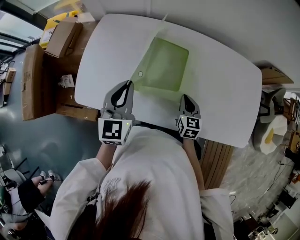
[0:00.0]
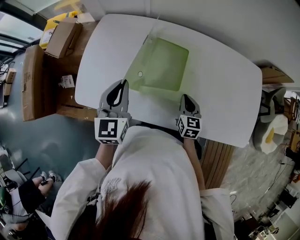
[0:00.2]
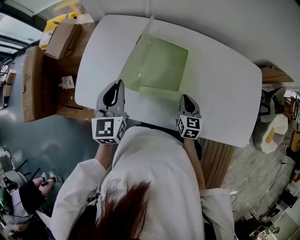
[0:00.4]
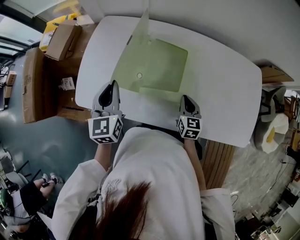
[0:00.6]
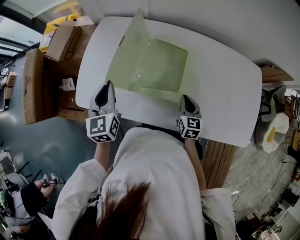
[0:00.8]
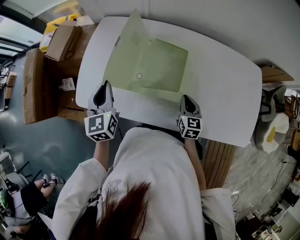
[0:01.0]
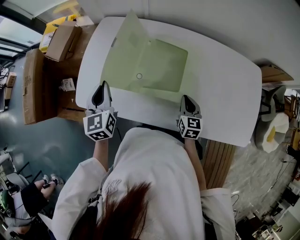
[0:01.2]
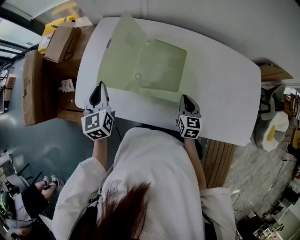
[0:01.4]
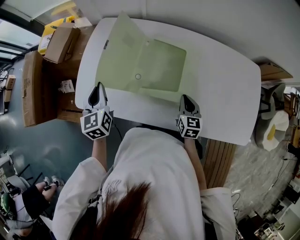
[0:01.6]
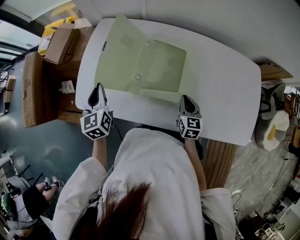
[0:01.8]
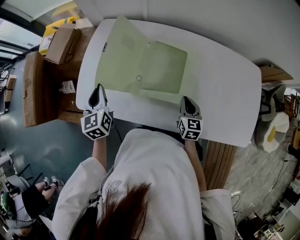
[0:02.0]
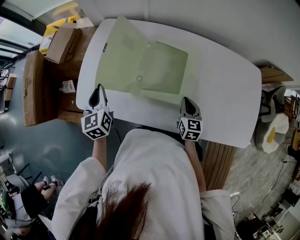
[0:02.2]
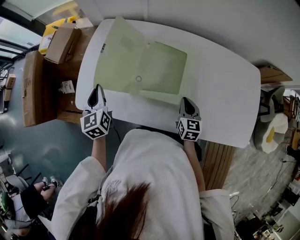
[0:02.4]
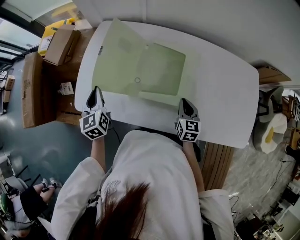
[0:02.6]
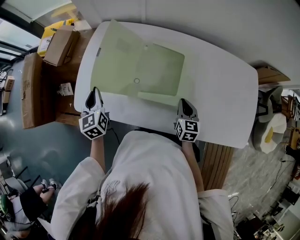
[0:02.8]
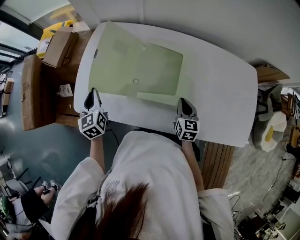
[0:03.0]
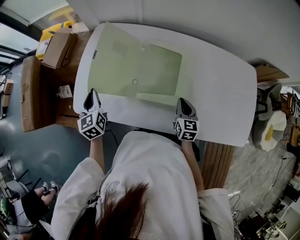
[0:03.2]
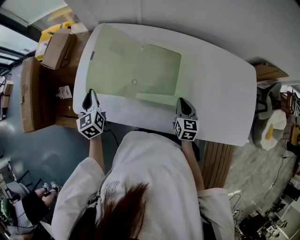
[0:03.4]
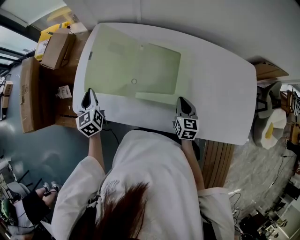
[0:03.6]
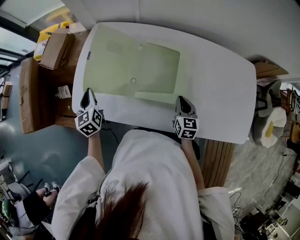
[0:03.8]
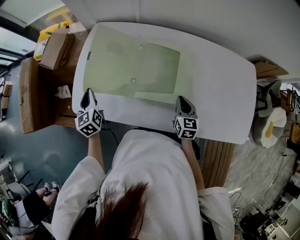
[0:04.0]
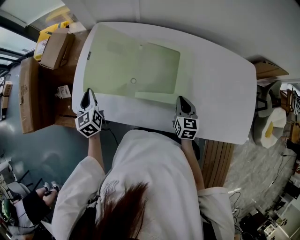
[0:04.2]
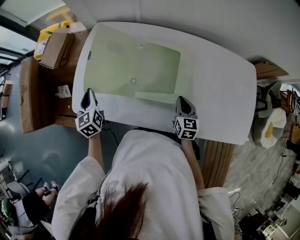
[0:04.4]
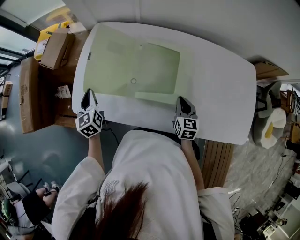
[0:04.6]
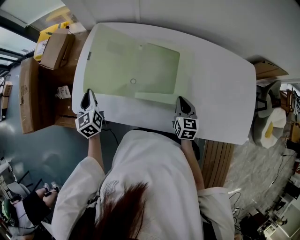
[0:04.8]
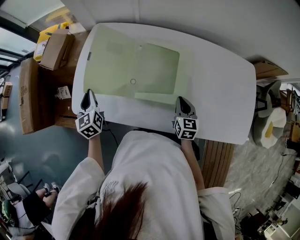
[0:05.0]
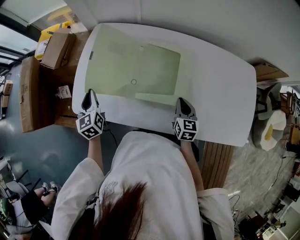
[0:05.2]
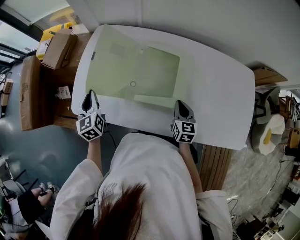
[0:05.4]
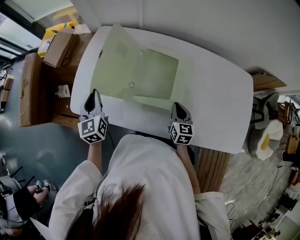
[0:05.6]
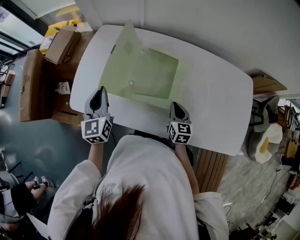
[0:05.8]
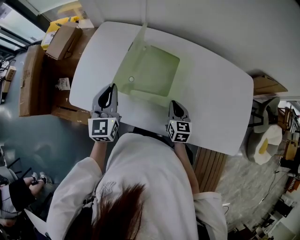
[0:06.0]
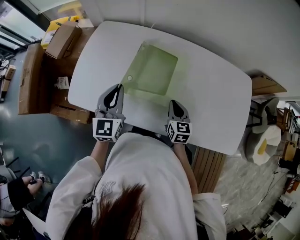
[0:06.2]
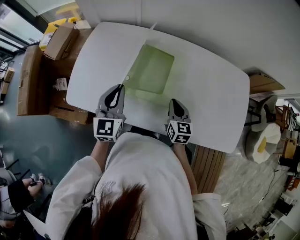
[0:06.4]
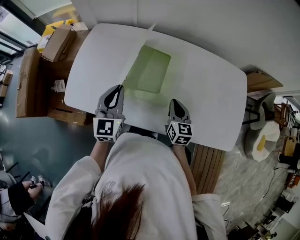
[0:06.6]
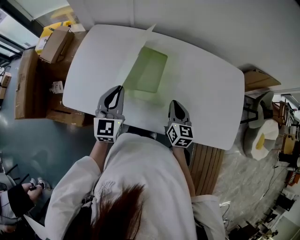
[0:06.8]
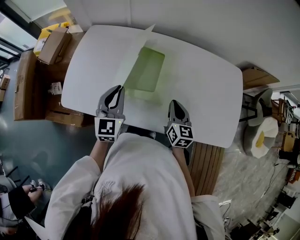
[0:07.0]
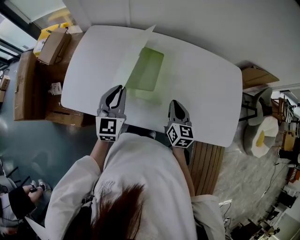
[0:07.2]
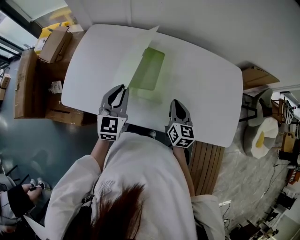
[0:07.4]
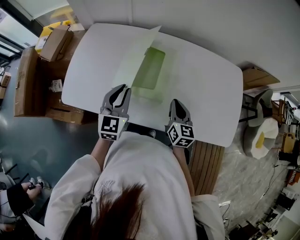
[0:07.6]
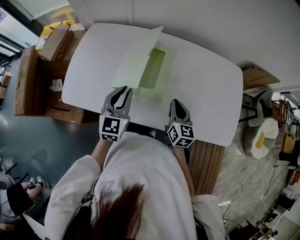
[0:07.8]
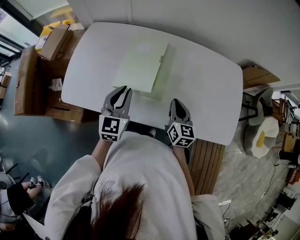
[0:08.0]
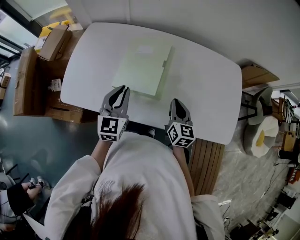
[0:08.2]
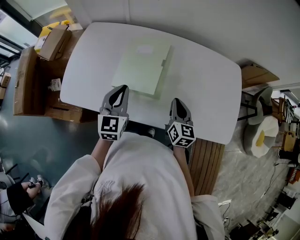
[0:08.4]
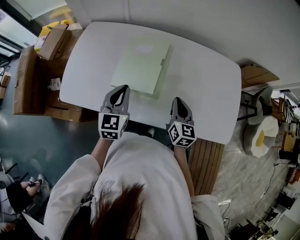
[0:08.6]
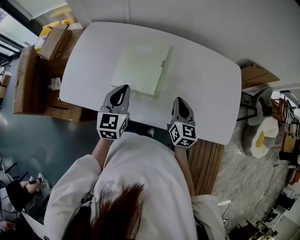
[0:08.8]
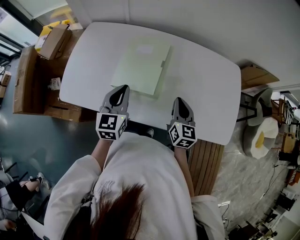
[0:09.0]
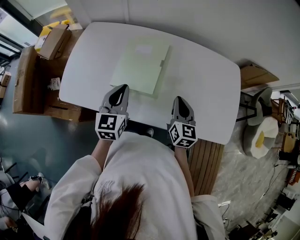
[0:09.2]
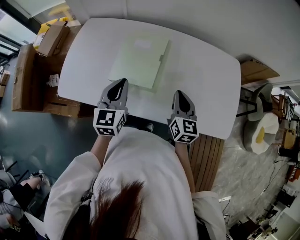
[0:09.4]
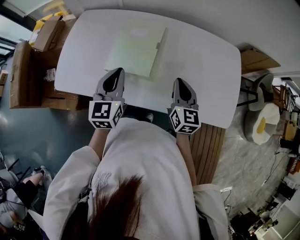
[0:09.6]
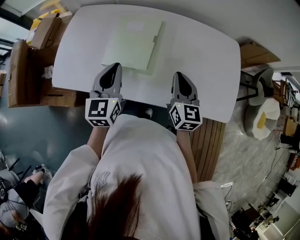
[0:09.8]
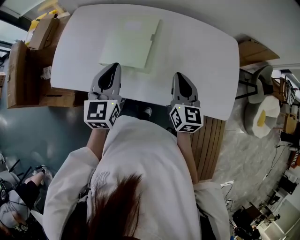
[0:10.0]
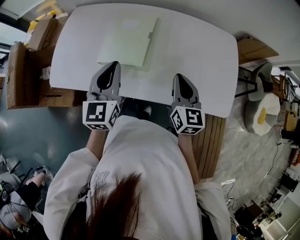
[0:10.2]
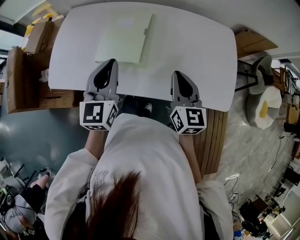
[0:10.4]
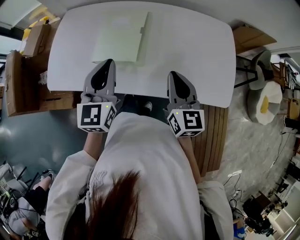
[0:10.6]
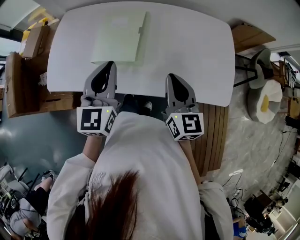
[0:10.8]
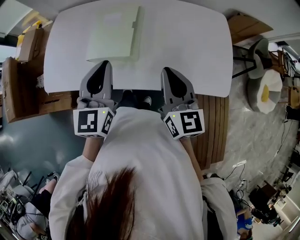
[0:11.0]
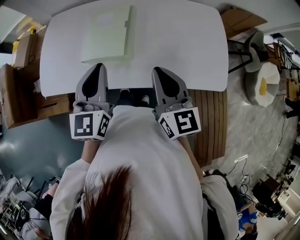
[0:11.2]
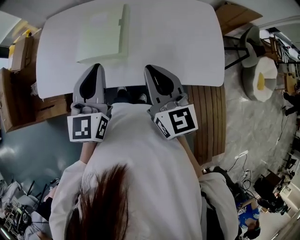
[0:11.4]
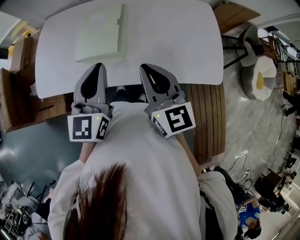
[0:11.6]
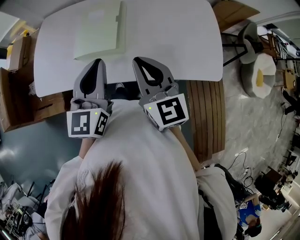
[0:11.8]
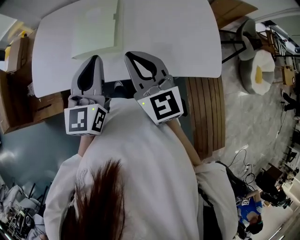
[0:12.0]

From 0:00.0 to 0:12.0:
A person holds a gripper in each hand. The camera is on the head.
From 0:00.0 to 0:01.6: The left gripper is displaced to the left by roughly 15 cm, and rotates approximately 20 degrees.
From 0:01.6 to 0:03.0: The left gripper shifts by about 5 cm.
From 0:03.0 to 0:04.4: The grippers move only a little.
From 0:04.4 to 0:06.0: The left gripper heads to the right and upward, covering approximately 20 cm, and swivels some 30 degrees.
From 0:06.0 to 0:07.6: The left gripper heads to the right, covering about 10 cm. Meanwhile the right gripper goes approximately 10 cm upward and to the right.
From 0:07.6 to 0:09.0: The grippers make only small movements.
From 0:09.0 to 0:10.4: The right gripper heads upward and backward, covering approximately 10 cm. The left gripper travels upward by roughly 5 cm.
From 0:10.4 to 0:12.0: The left gripper shifts approximately 5 cm backward. Meanwhile the right gripper travels to the left and upward by some 10 cm.

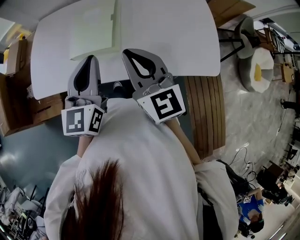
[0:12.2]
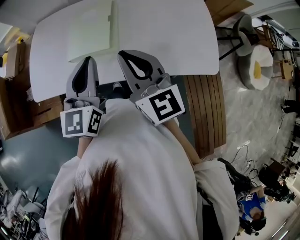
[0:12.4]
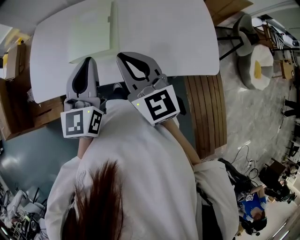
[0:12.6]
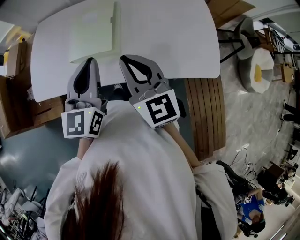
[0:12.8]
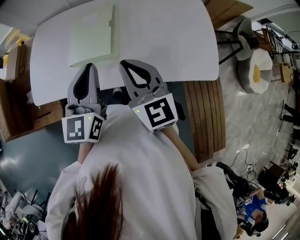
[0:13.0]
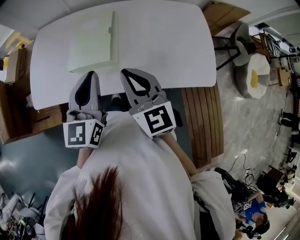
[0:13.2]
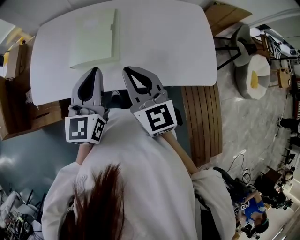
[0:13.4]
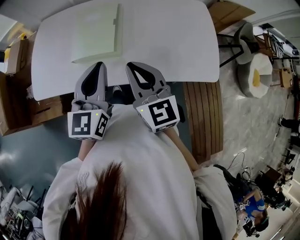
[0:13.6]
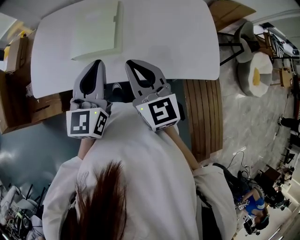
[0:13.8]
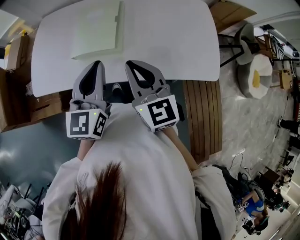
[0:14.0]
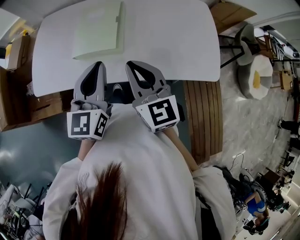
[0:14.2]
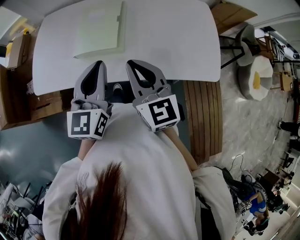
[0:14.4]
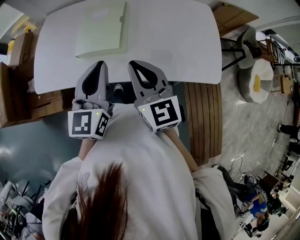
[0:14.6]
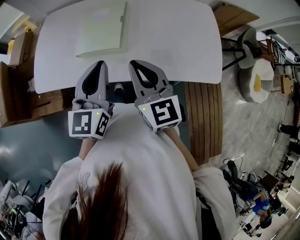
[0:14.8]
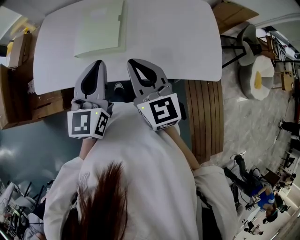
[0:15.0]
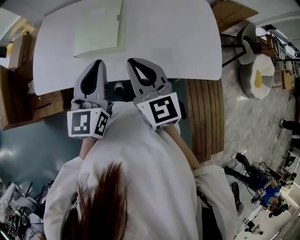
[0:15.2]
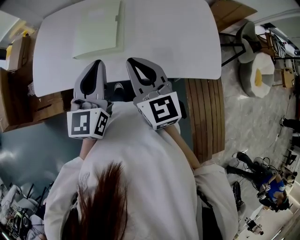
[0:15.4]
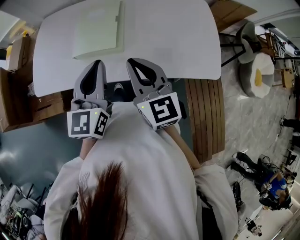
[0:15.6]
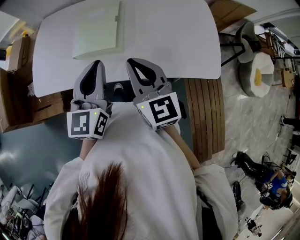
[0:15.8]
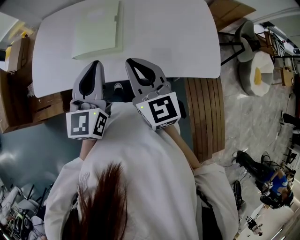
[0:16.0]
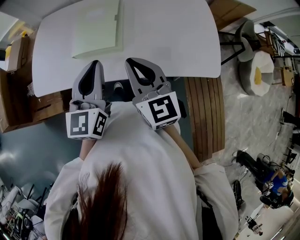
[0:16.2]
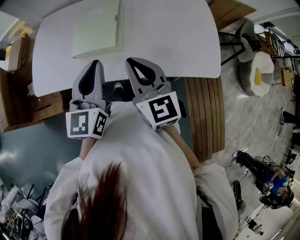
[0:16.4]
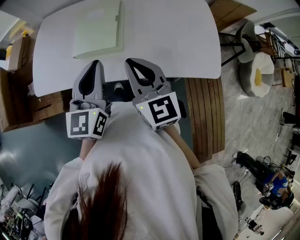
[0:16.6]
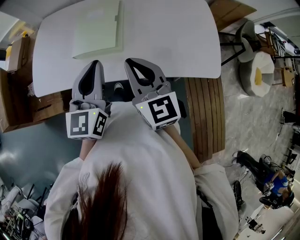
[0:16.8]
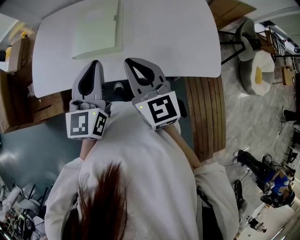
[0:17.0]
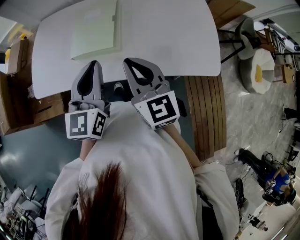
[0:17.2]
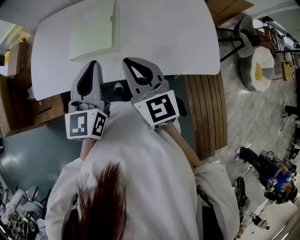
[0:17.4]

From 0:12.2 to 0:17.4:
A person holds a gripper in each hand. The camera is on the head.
From 0:12.2 to 0:14.0: The grippers stay close to where they were, moving slightly.
From 0:14.0 to 0:17.4: Neither gripper changes place.

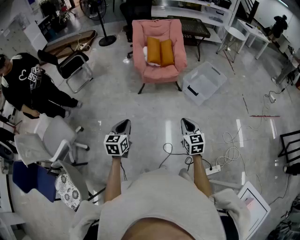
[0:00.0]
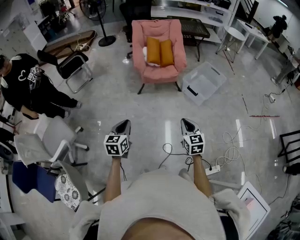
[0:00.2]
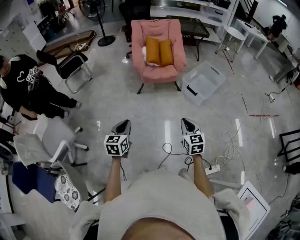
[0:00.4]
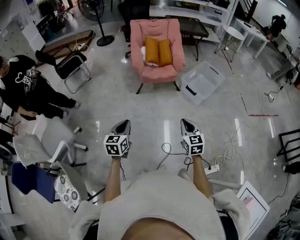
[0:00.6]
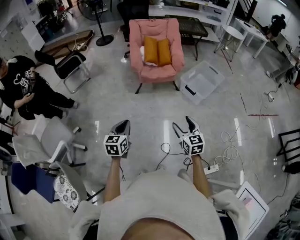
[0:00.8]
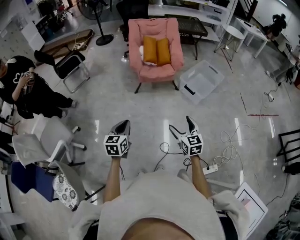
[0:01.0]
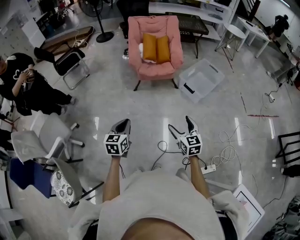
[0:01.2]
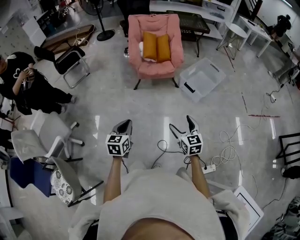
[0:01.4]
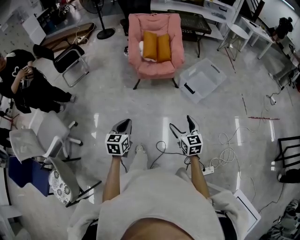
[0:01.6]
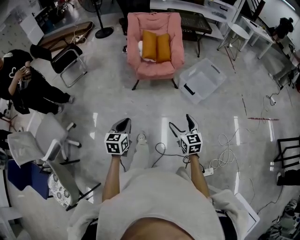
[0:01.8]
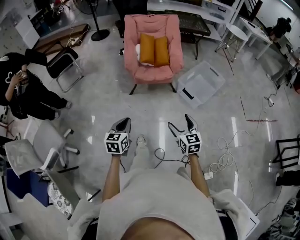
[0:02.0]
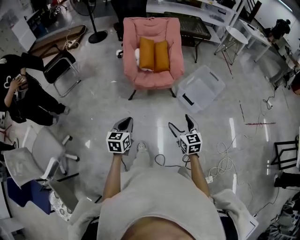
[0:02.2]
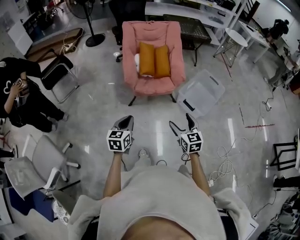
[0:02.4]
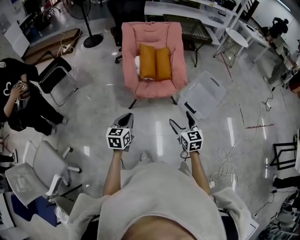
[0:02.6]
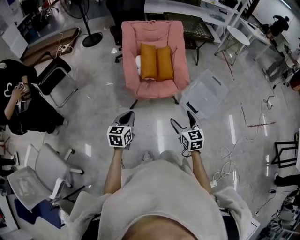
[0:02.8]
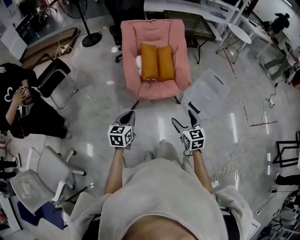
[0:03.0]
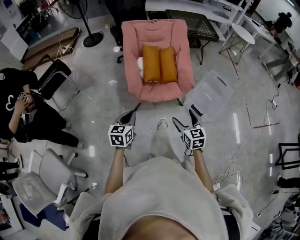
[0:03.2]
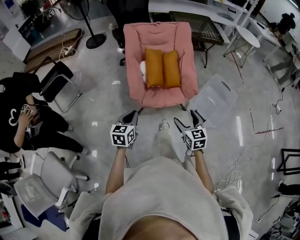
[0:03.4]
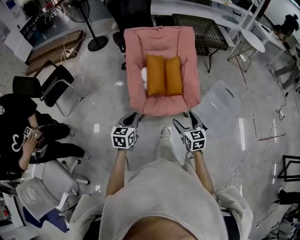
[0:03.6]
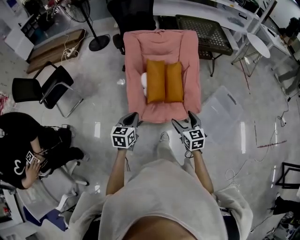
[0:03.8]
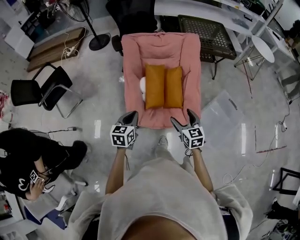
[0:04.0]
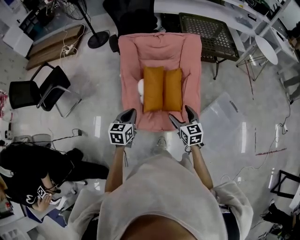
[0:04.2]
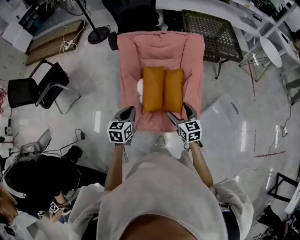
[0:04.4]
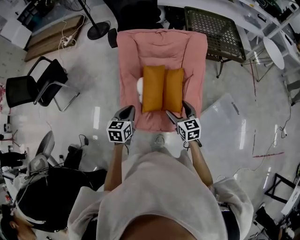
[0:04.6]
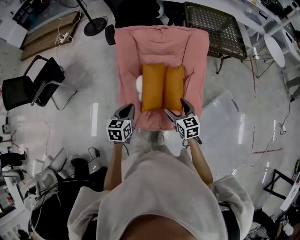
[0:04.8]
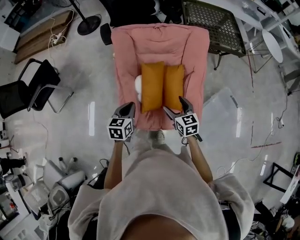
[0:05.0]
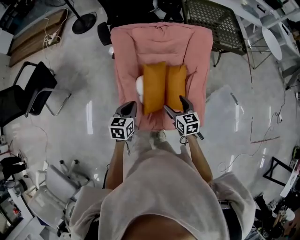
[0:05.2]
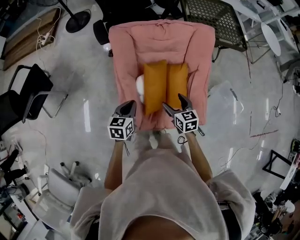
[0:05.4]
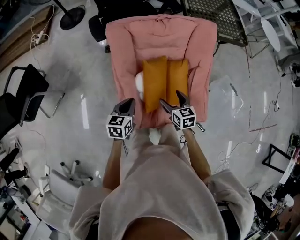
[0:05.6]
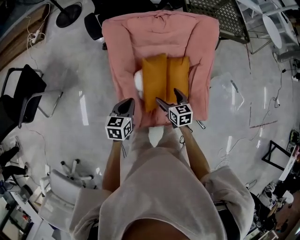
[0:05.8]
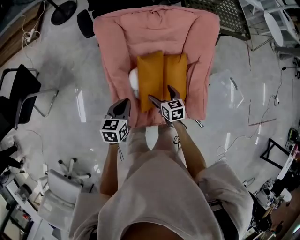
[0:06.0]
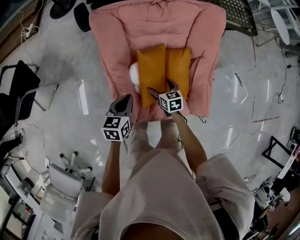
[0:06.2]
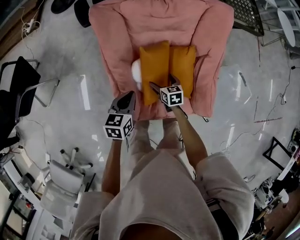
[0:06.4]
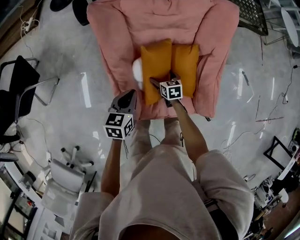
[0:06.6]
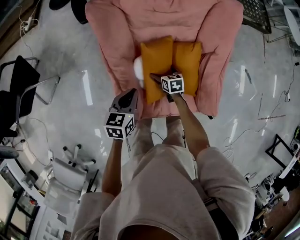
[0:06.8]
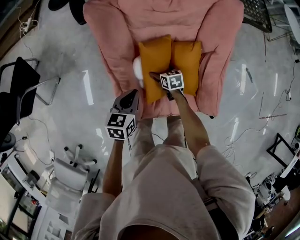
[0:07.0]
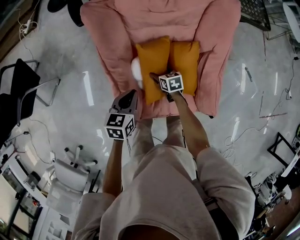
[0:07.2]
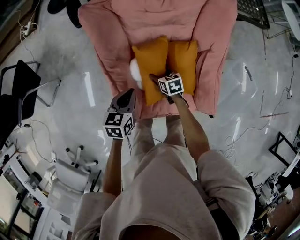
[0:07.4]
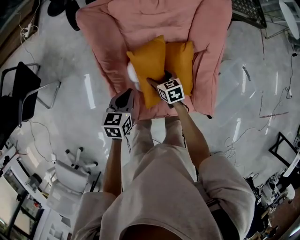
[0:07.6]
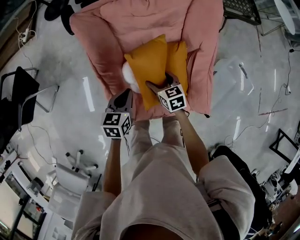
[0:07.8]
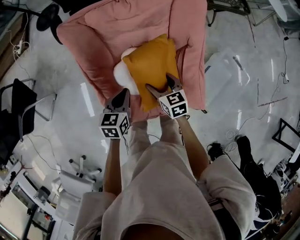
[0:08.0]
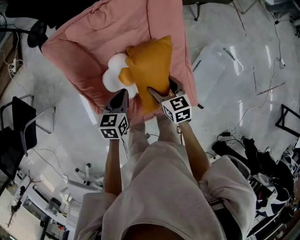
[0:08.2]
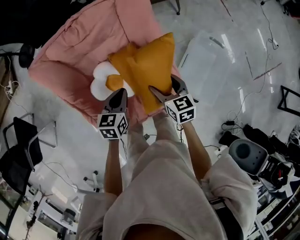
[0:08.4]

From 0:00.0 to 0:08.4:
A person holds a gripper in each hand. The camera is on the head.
From 0:00.0 to 0:01.4: The left gripper shifts some 10 cm to the right. Meanwhile the right gripper ends up approximately 5 cm from where it was, and opens its fingers.
From 0:01.4 to 0:02.8: The pair of grippers is taken forward, approximately 40 cm.
From 0:02.8 to 0:04.2: Both grippers are carried forward, roughly 50 cm.
From 0:04.2 to 0:05.6: The right gripper travels forward, downward and to the left by approximately 25 cm; the left gripper moves forward and downward, some 25 cm.
From 0:05.6 to 0:07.0: The left gripper moves downward, approximately 10 cm, while the right gripper shifts some 25 cm downward, and swivels some 20 degrees.
From 0:07.0 to 0:08.4: The left gripper moves approximately 20 cm; the right gripper moves roughly 35 cm, and swivels approximately 30 degrees.
